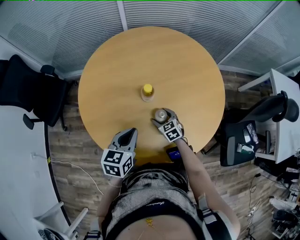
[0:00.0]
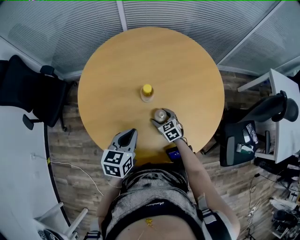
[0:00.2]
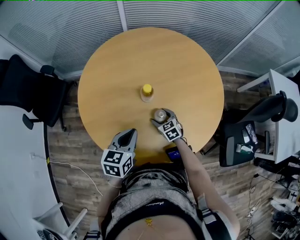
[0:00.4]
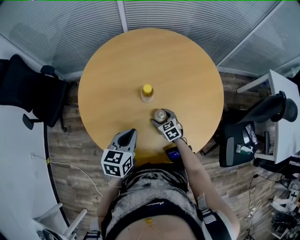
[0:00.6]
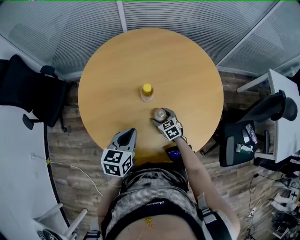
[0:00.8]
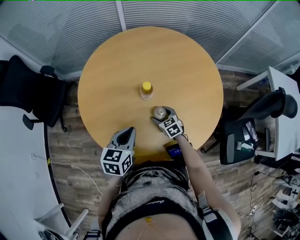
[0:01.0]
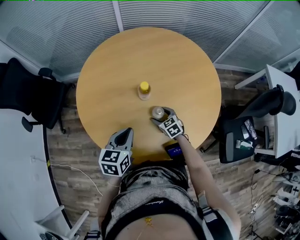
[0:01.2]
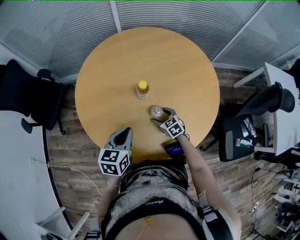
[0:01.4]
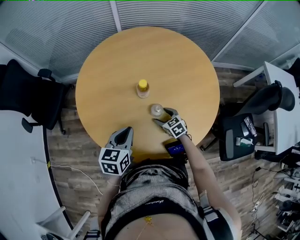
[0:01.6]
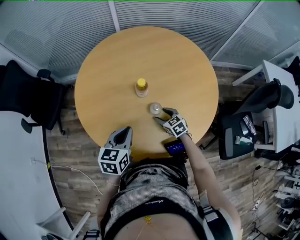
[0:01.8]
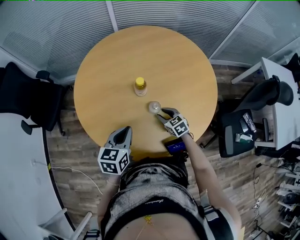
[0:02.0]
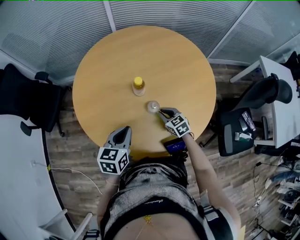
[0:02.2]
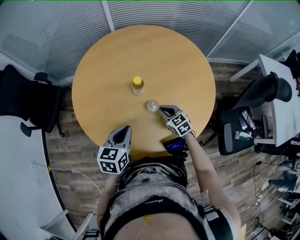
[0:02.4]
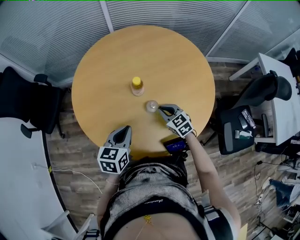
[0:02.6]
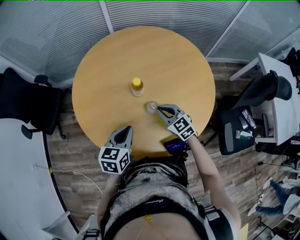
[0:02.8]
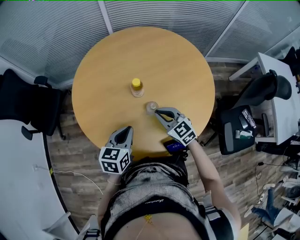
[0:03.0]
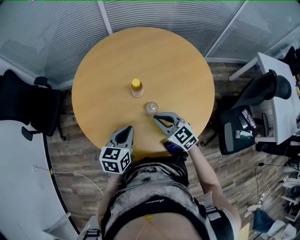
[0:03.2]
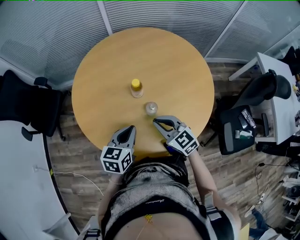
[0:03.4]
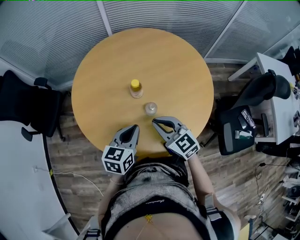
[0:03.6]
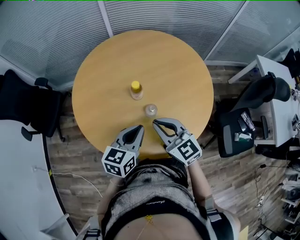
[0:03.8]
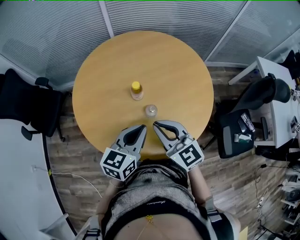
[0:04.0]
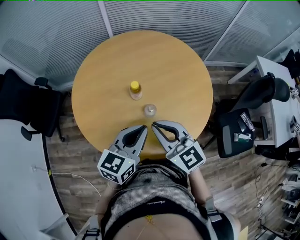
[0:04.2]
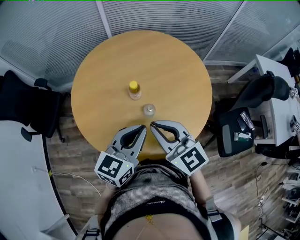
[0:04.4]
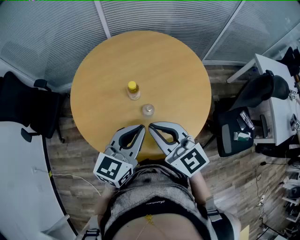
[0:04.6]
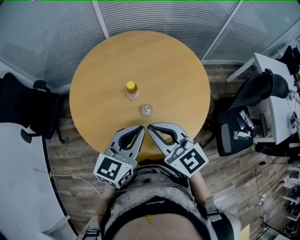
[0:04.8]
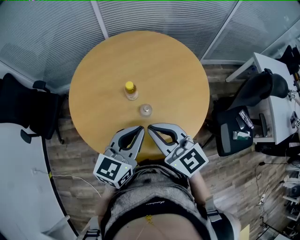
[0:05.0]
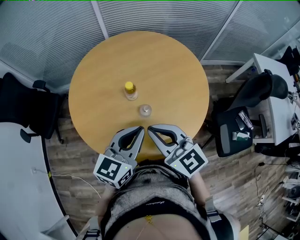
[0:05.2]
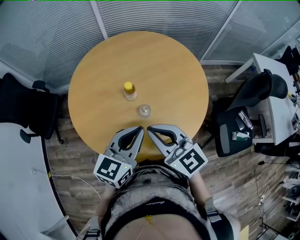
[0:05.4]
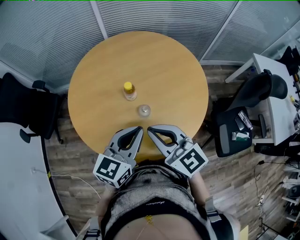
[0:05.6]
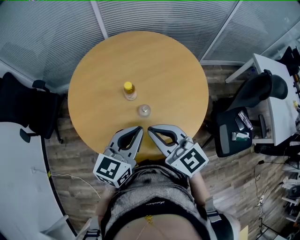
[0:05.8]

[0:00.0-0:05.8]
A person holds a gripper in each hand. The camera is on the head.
0:00.0 to 0:01.4: The grippers stay close to where they were, moving slightly.
0:01.4 to 0:02.8: The right gripper moves upward, approximately 15 cm, and closes its fingers.
0:02.8 to 0:04.4: The right gripper travels upward by approximately 20 cm, and changes its angle by approximately 20 degrees. The left gripper is displaced upward and to the right by approximately 15 cm, and rotates approximately 20 degrees.
0:04.4 to 0:05.8: There are only small adjustments of the grippers.

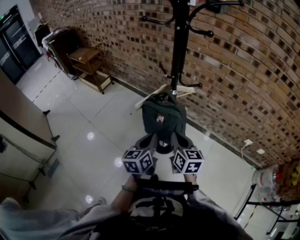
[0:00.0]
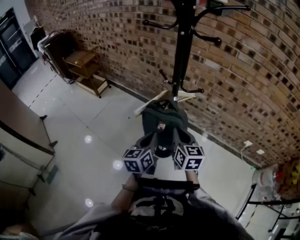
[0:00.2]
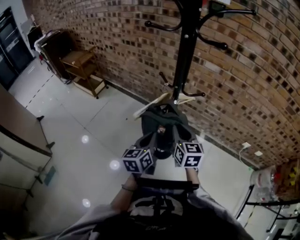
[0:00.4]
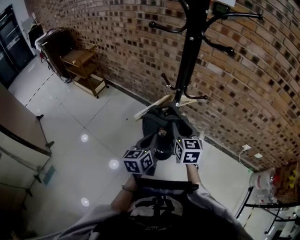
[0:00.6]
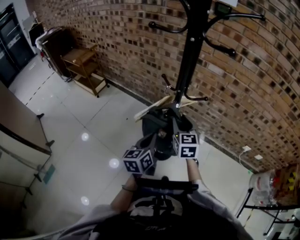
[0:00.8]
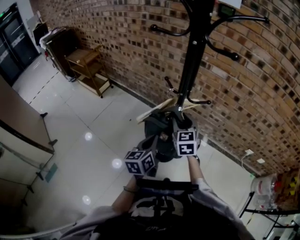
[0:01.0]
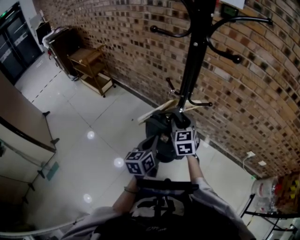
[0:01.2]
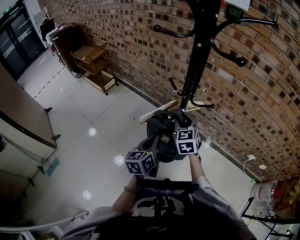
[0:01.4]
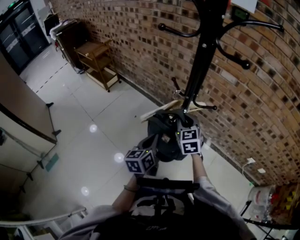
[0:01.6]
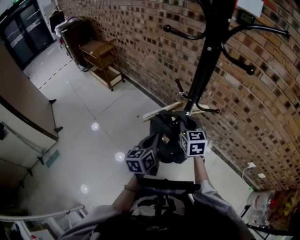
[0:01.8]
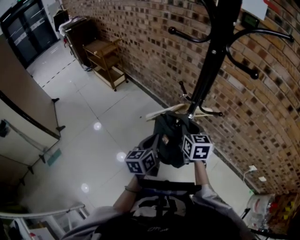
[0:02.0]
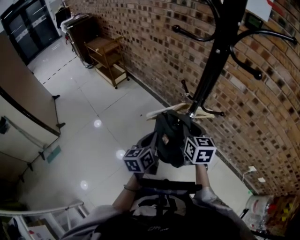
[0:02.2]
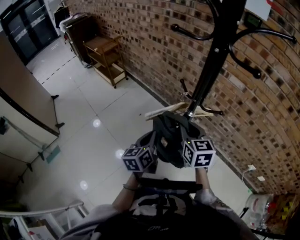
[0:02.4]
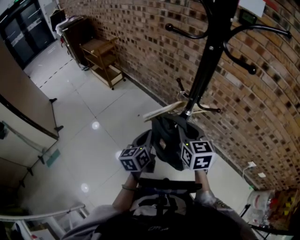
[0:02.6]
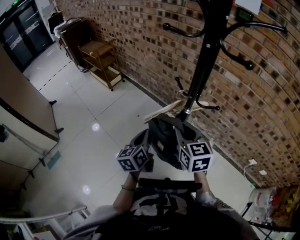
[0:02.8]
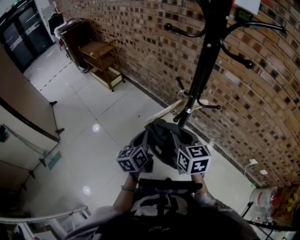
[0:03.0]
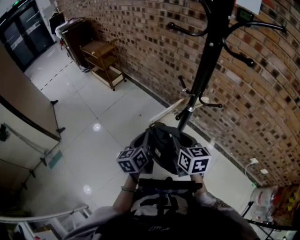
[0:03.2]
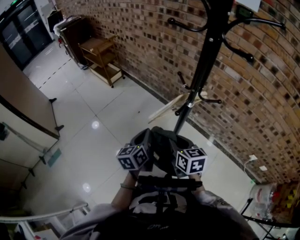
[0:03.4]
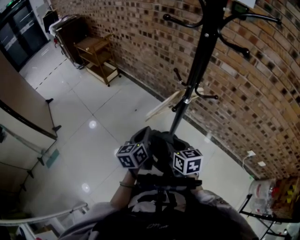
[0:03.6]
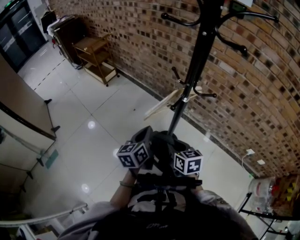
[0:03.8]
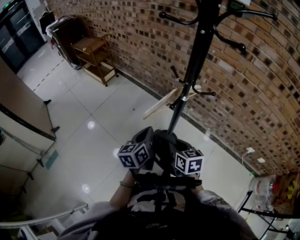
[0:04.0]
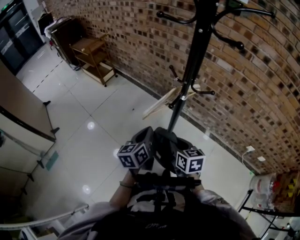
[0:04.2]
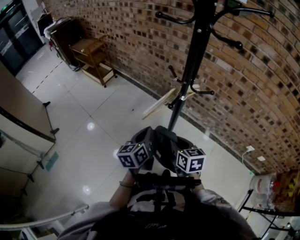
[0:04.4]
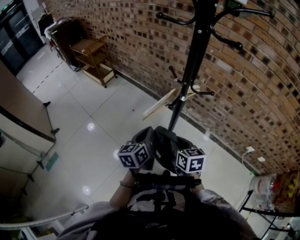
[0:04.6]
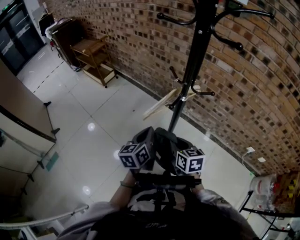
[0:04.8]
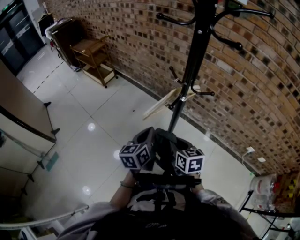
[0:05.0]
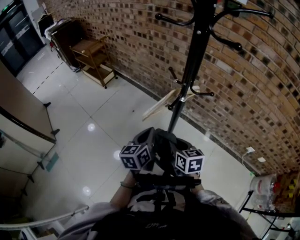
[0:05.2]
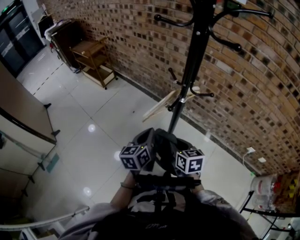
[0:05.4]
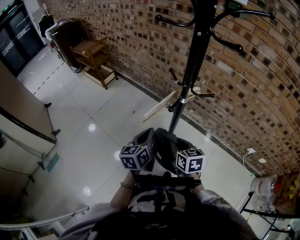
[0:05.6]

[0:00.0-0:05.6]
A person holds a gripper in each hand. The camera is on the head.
0:00.0 to 0:01.4: The left gripper travels forward by some 10 cm. The right gripper heads forward, covering roughly 20 cm, turns by some 30 degrees, and opens up.
0:01.4 to 0:02.8: The left gripper moves to the left, approximately 5 cm; the right gripper heads backward and upward, covering roughly 10 cm, and changes its angle by approximately 20 degrees.
0:02.8 to 0:04.2: The right gripper goes approximately 15 cm downward and backward.
0:04.2 to 0:05.6: The grippers move only a little.

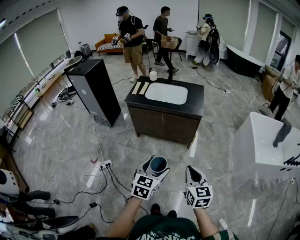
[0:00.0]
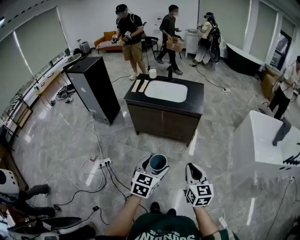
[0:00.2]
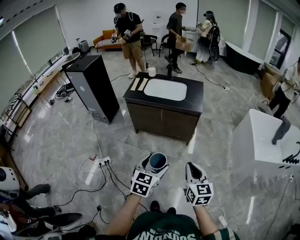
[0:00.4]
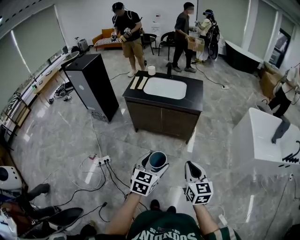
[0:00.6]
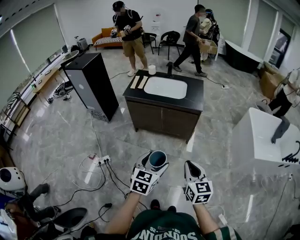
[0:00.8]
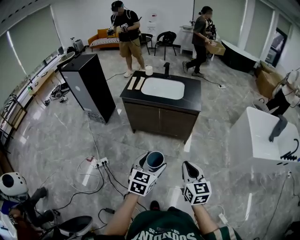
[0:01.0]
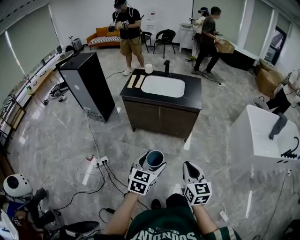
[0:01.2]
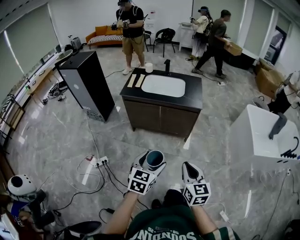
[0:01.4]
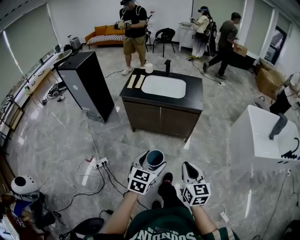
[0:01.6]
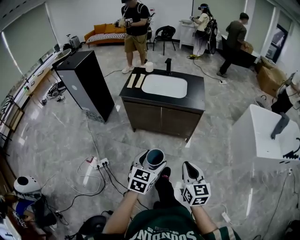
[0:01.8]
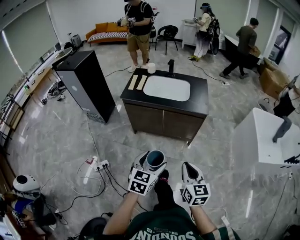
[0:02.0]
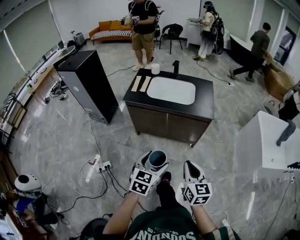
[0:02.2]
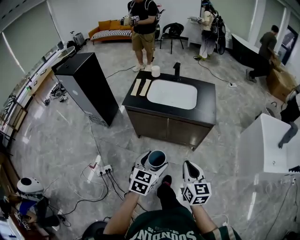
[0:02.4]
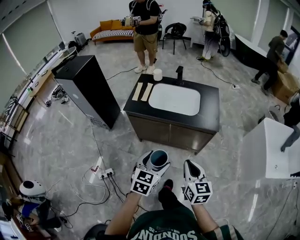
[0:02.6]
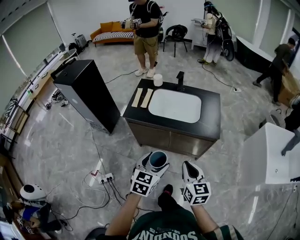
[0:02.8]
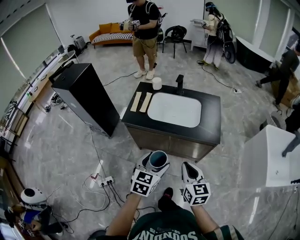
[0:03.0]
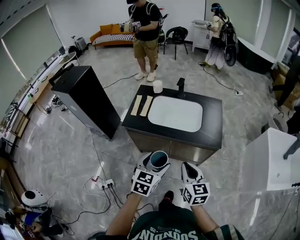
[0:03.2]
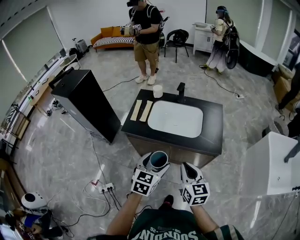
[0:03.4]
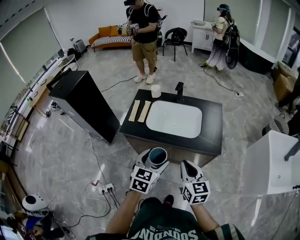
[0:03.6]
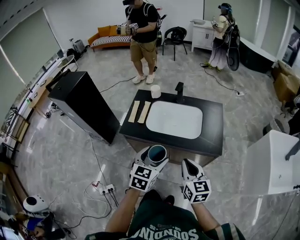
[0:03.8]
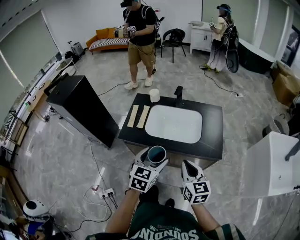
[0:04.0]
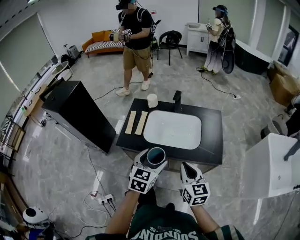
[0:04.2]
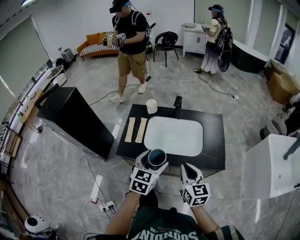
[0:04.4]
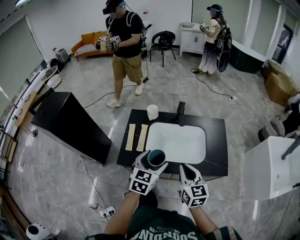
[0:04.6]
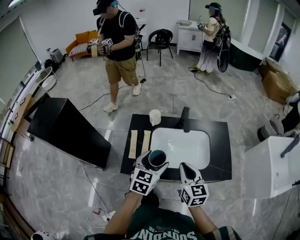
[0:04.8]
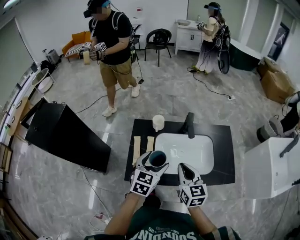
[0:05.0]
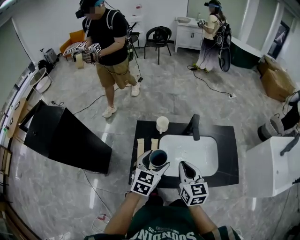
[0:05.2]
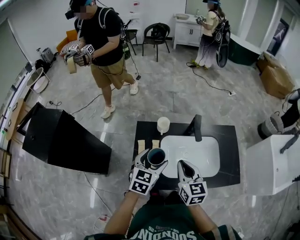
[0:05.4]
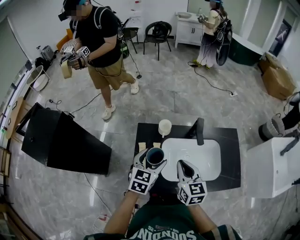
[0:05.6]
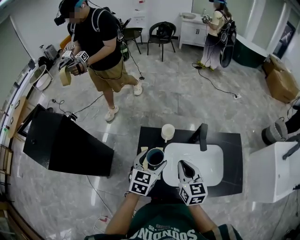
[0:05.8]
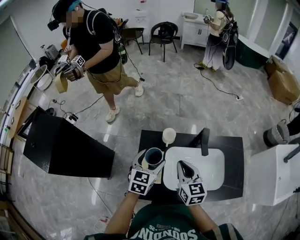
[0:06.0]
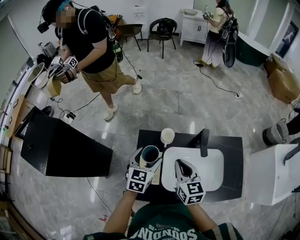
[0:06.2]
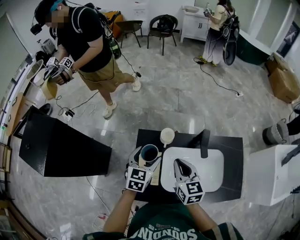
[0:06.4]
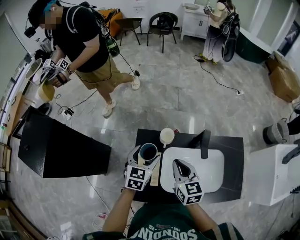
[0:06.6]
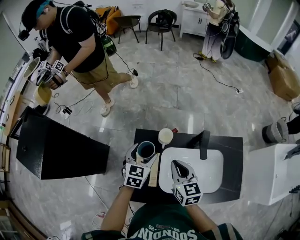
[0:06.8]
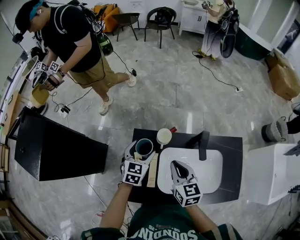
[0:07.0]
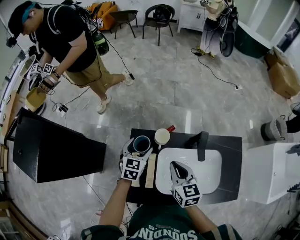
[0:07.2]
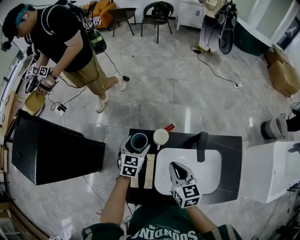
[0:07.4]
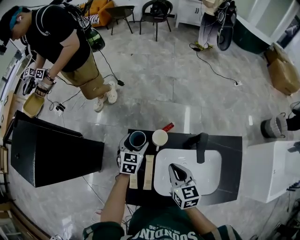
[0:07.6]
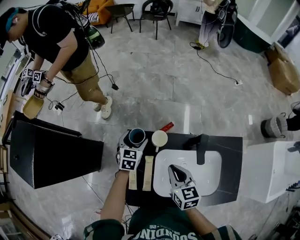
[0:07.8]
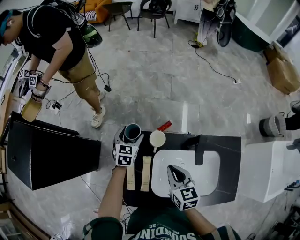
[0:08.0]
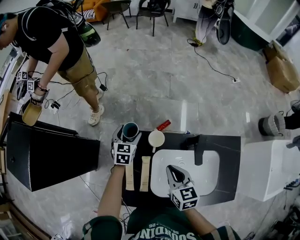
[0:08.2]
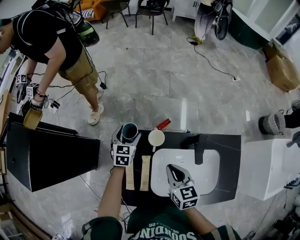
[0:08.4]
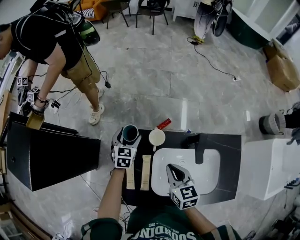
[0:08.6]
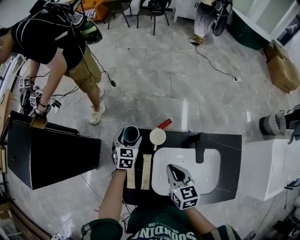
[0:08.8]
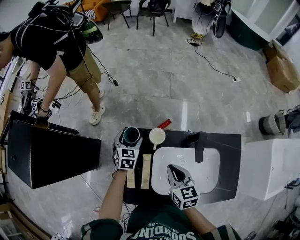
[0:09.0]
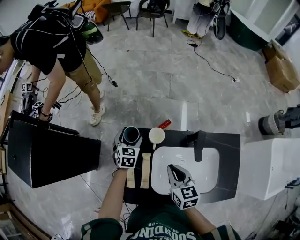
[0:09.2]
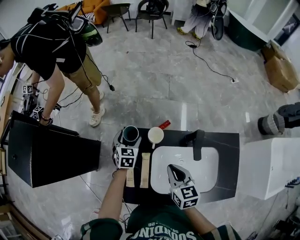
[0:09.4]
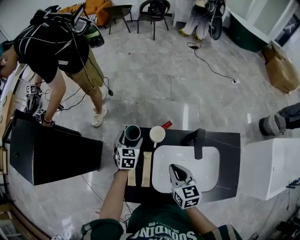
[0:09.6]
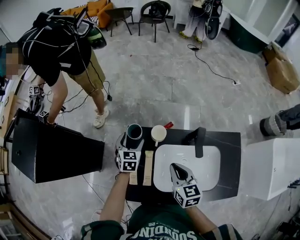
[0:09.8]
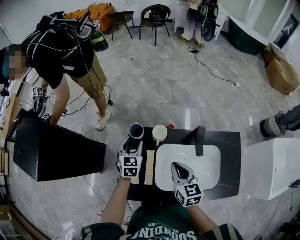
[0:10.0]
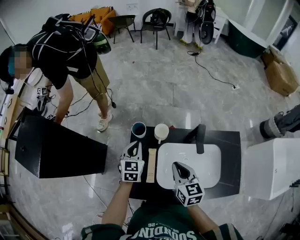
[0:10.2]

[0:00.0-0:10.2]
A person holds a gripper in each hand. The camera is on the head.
0:00.0 to 0:01.4: The two grippers go approximately 5 cm to the left.
0:01.4 to 0:03.0: Both grippers travel together forward, some 35 cm.
0:03.0 to 0:04.4: The grippers both shift forward by about 25 cm.
0:04.4 to 0:05.8: The grippers both shift forward and to the left by about 35 cm.
0:05.8 to 0:07.2: The left gripper goes about 20 cm forward and downward. The right gripper is displaced forward and downward by some 10 cm.
0:07.2 to 0:08.8: The left gripper is displaced downward and forward by roughly 10 cm.
0:08.8 to 0:10.2: The left gripper goes approximately 15 cm upward and backward, and closes up. The right gripper heads backward, covering about 5 cm.

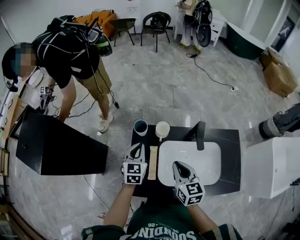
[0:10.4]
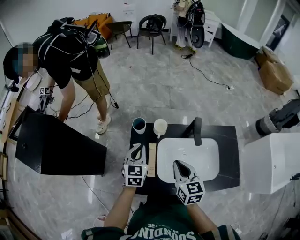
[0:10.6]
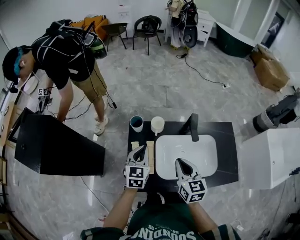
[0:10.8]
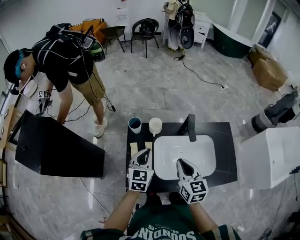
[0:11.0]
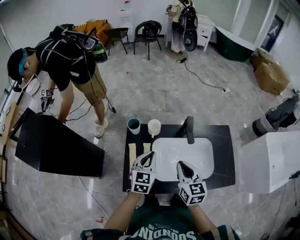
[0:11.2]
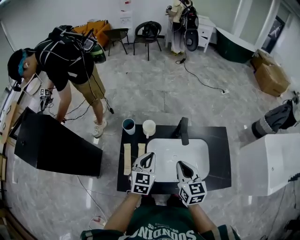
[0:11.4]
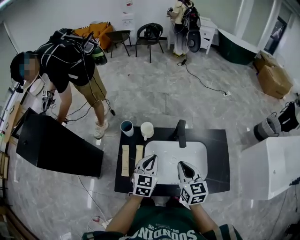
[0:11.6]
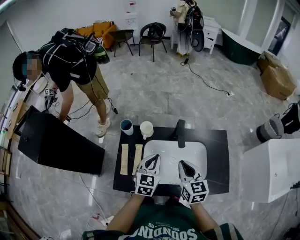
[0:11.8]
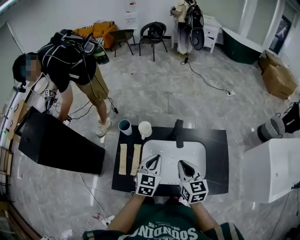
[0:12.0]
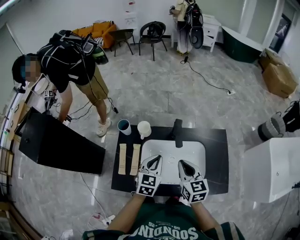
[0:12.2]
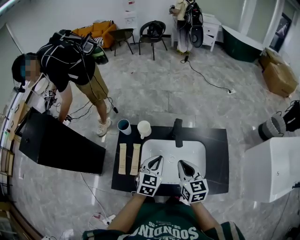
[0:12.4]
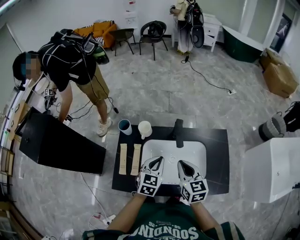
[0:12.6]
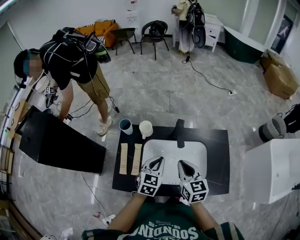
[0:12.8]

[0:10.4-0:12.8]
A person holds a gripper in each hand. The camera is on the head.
0:10.4 to 0:11.6: The right gripper moves to the right, approximately 15 cm. The left gripper heads to the right and backward, covering some 20 cm.
0:11.6 to 0:12.8: The left gripper shifts roughly 5 cm to the right.
